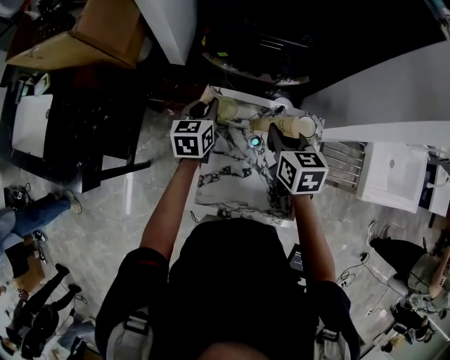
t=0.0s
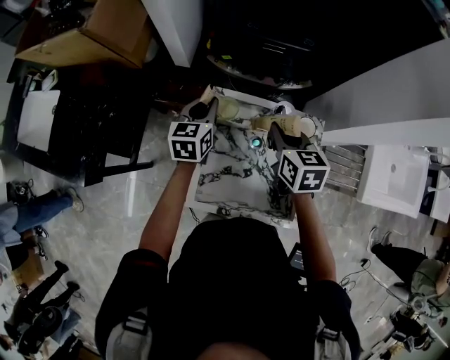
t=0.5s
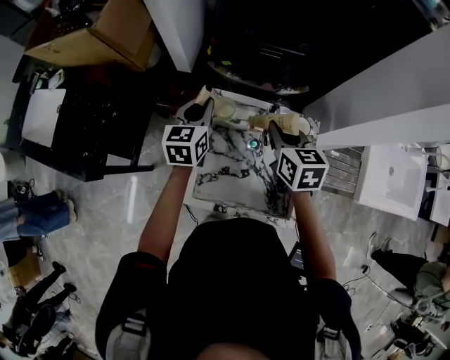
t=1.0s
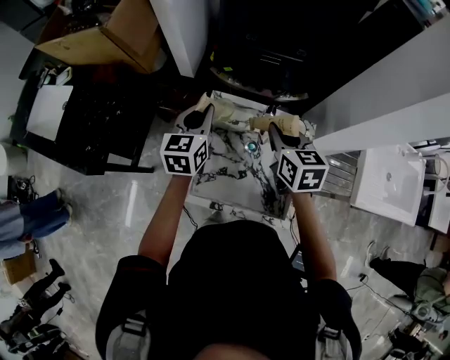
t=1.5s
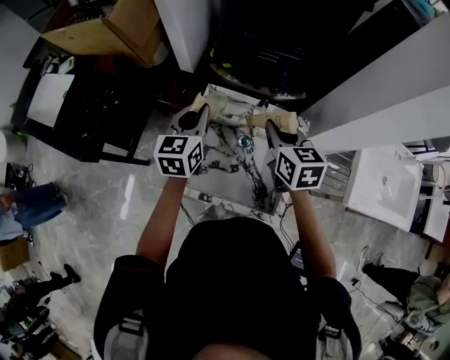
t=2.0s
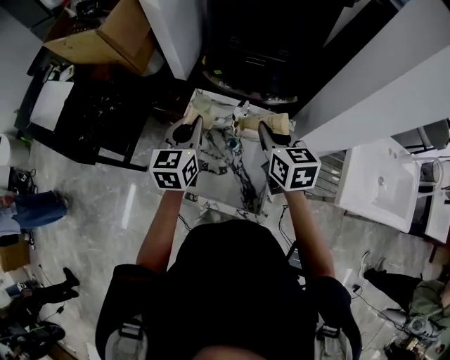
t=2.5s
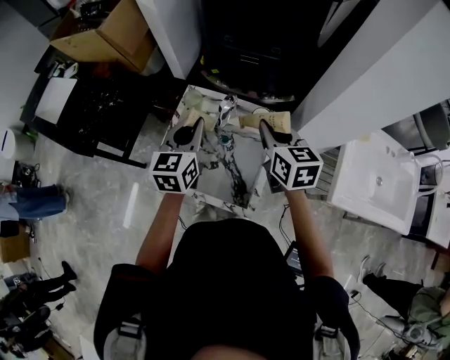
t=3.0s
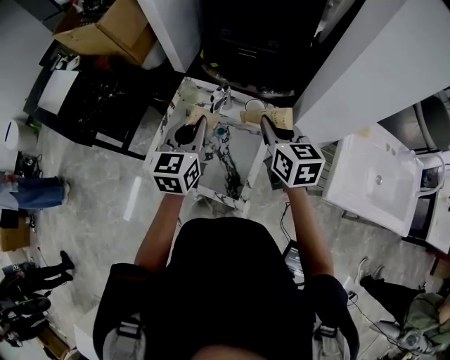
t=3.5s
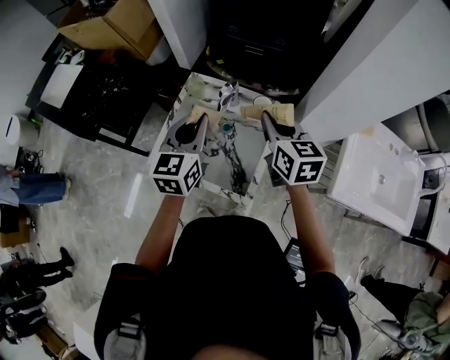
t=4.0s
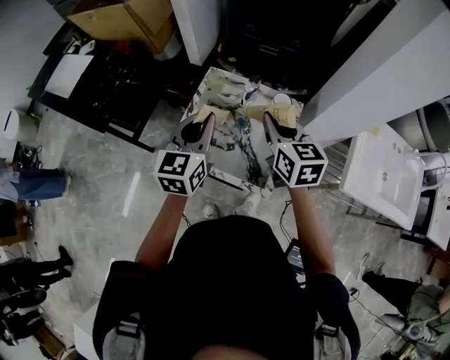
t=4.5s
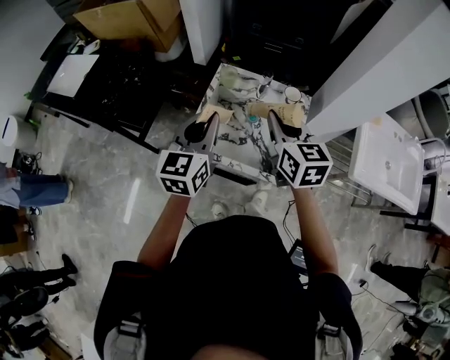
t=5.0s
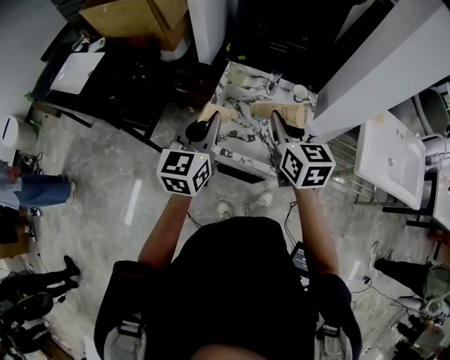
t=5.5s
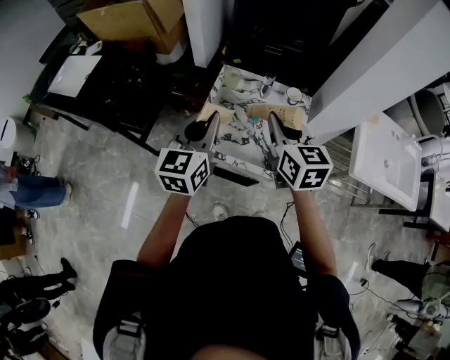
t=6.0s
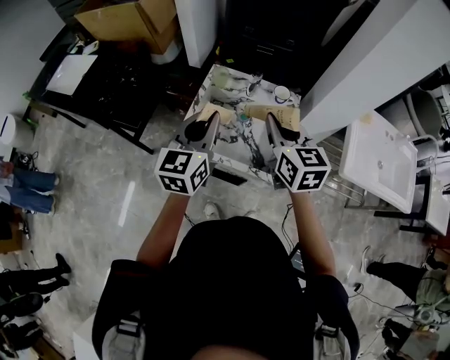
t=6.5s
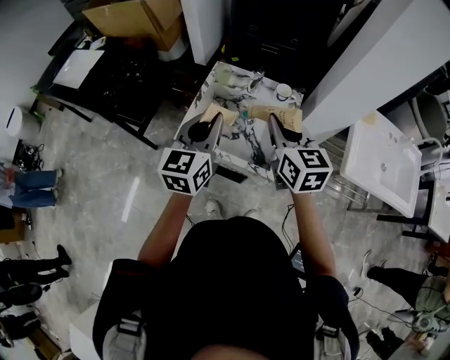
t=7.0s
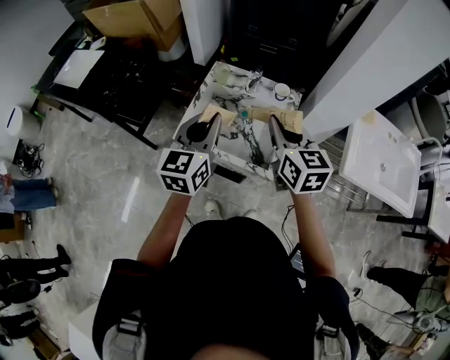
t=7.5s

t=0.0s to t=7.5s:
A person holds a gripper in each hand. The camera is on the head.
t=0.0s to t=2.0s: The left gripper is displaced upward and backward by roughly 15 cm. Meanwhile the right gripper goes roughly 5 cm upward.
t=2.0s to t=4.0s: The left gripper is displaced backward and to the right by some 20 cm; the right gripper shifts approximately 15 cm to the right and backward.
t=4.0s to t=5.5s: Both grippers travel together to the left and backward, about 20 cm.
t=5.5s to t=7.5s: The two grippers go approximately 10 cm to the right.

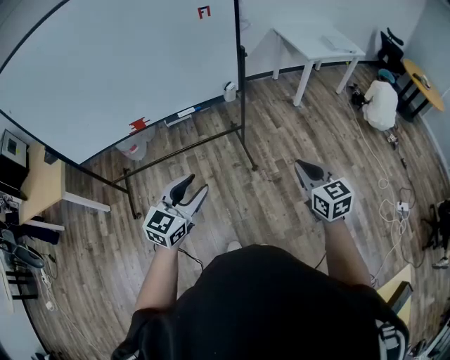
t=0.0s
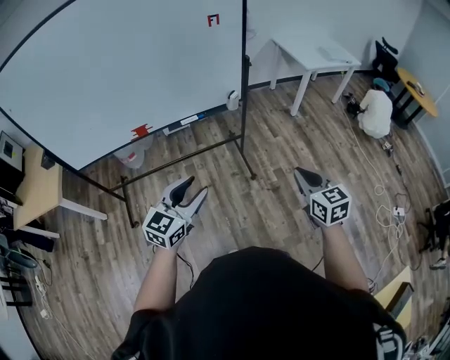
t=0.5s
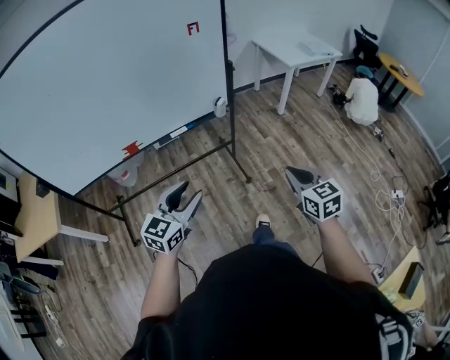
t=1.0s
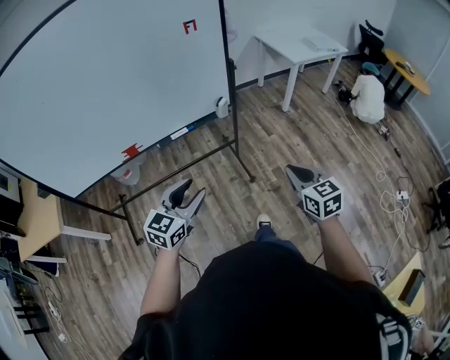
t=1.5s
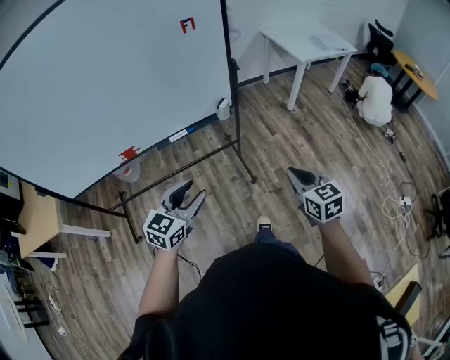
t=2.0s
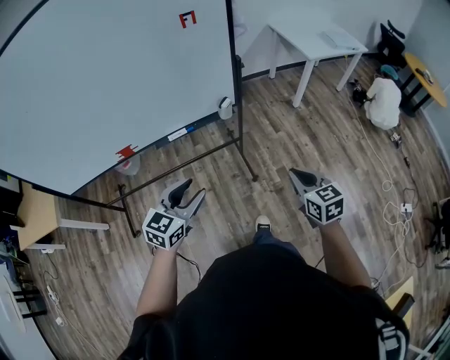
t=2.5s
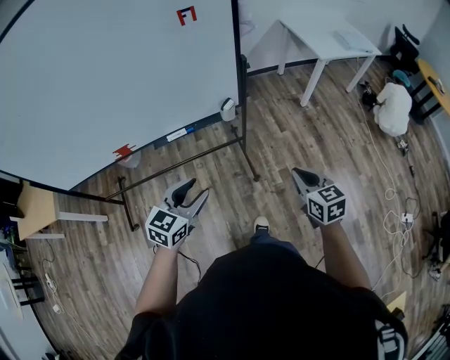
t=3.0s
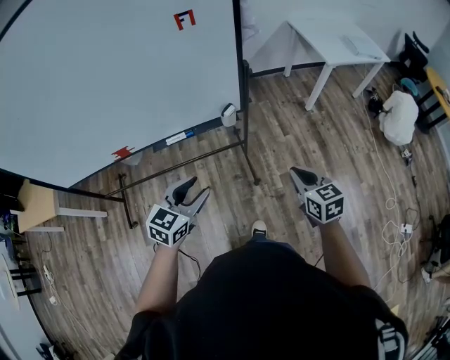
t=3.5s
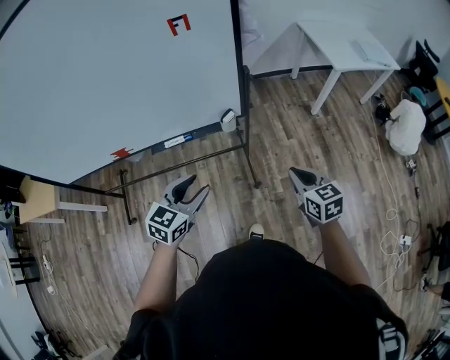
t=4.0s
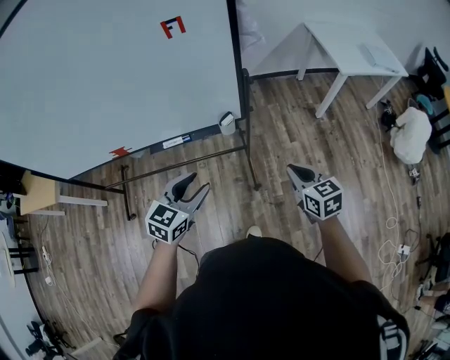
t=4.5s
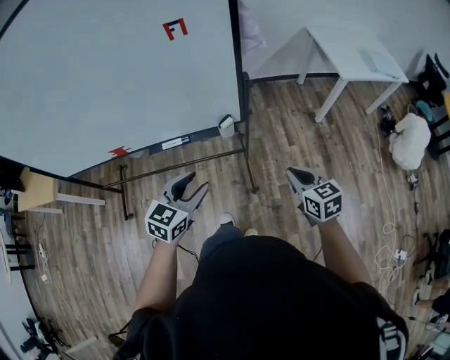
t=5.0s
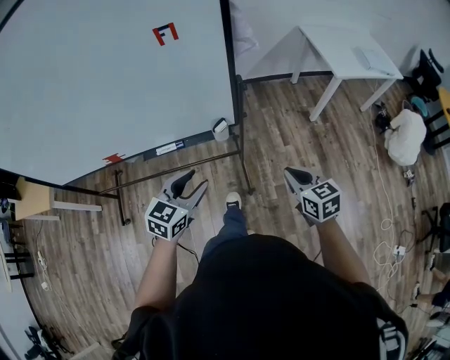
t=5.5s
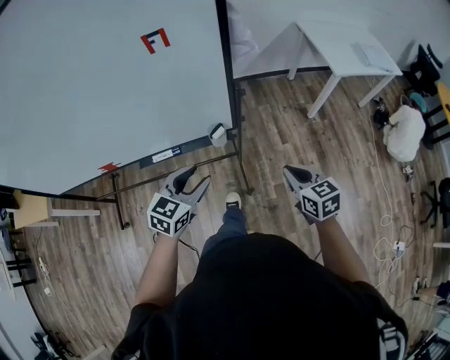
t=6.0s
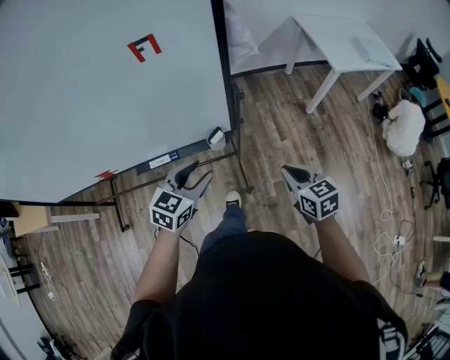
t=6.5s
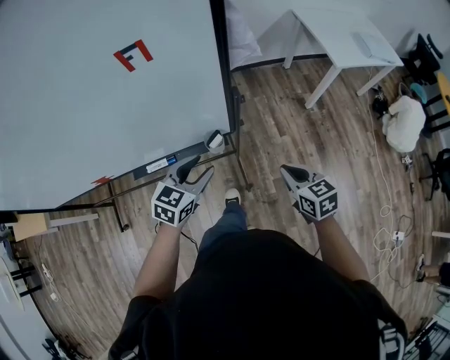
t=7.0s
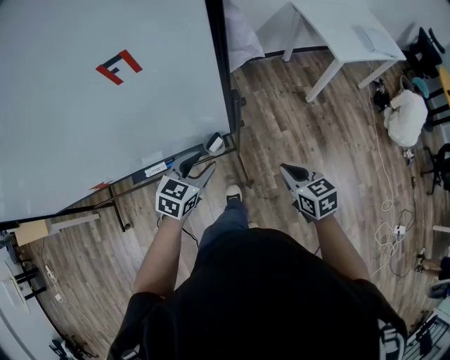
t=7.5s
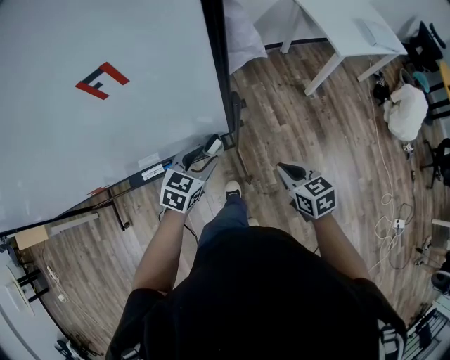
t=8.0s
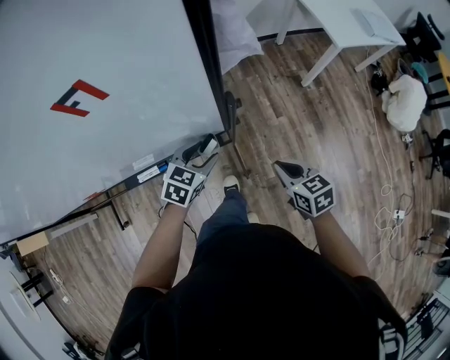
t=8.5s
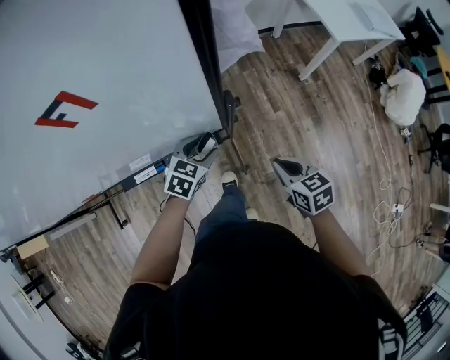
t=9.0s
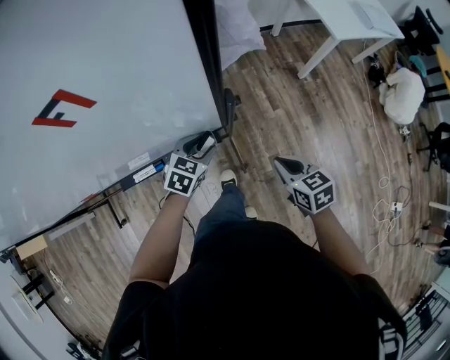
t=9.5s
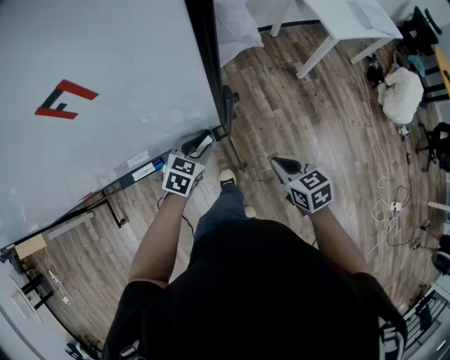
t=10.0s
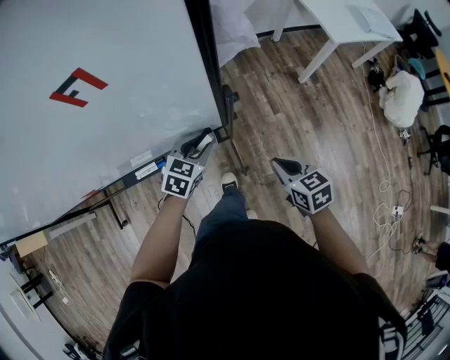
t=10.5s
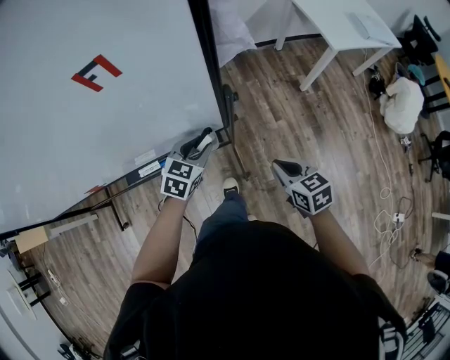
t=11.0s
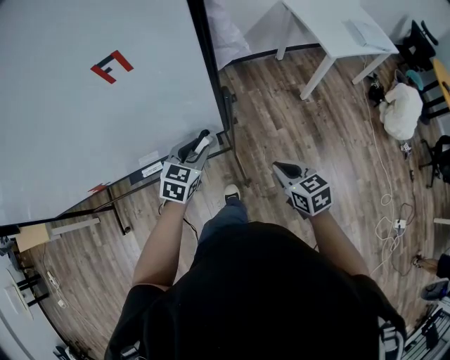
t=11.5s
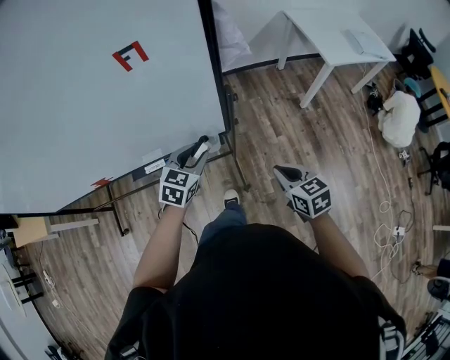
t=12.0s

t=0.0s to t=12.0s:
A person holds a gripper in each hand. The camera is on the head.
t=0.0s to t=2.0s: The grippers both shift forward by roughly 10 cm.
t=2.0s to t=4.0s: The two grippers go approximately 20 cm forward.
t=4.0s to t=6.0s: The grippers both shift forward by approximately 10 cm.
t=6.0s to t=8.0s: The left gripper travels forward and downward by about 20 cm, while the right gripper is displaced forward and downward by about 10 cm.
t=8.0s to t=10.0s: The left gripper shifts roughly 5 cm downward.
t=10.0s to t=12.0s: The grippers both shift upward and backward by some 10 cm.

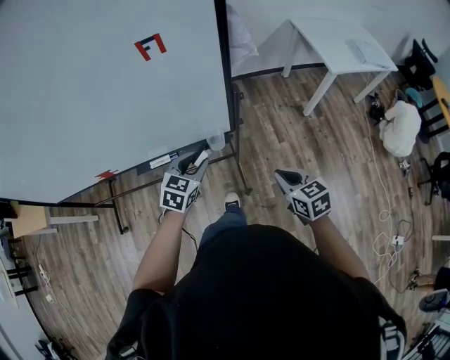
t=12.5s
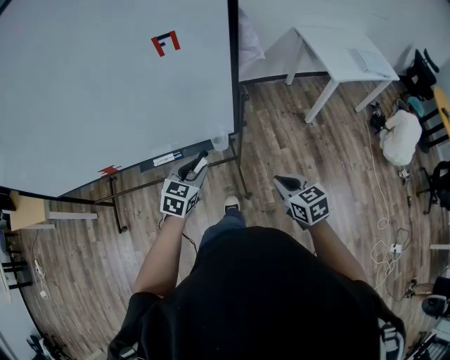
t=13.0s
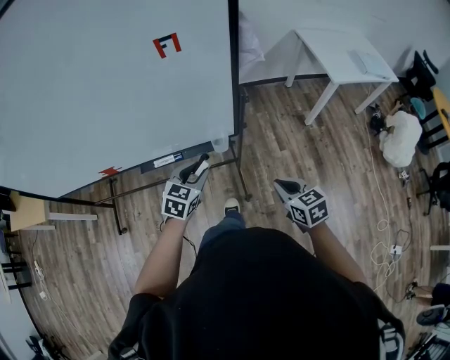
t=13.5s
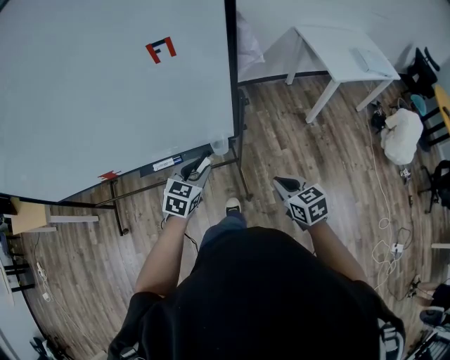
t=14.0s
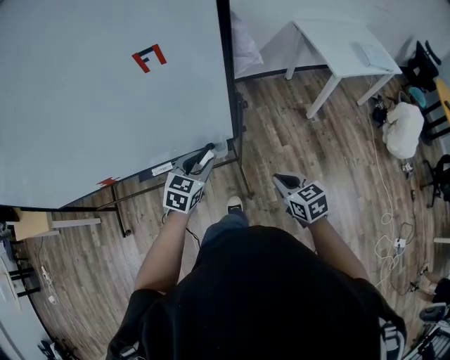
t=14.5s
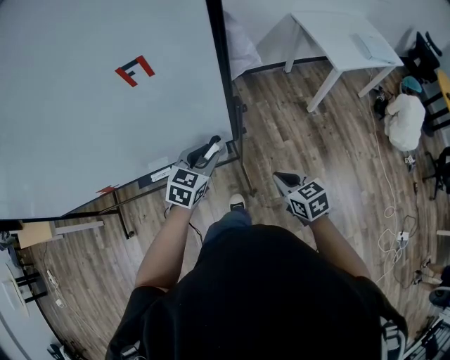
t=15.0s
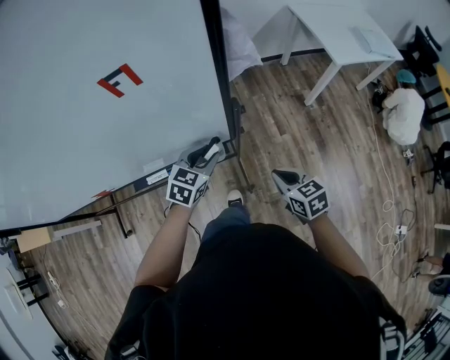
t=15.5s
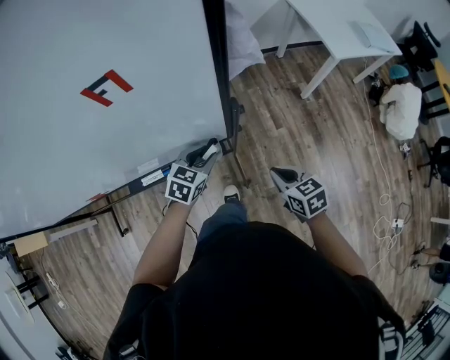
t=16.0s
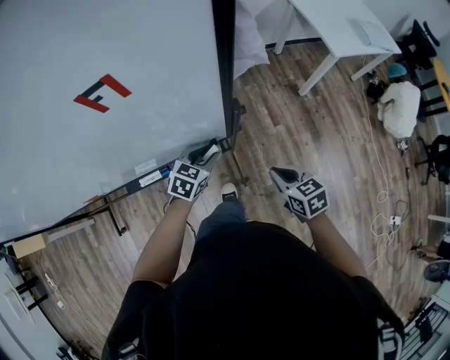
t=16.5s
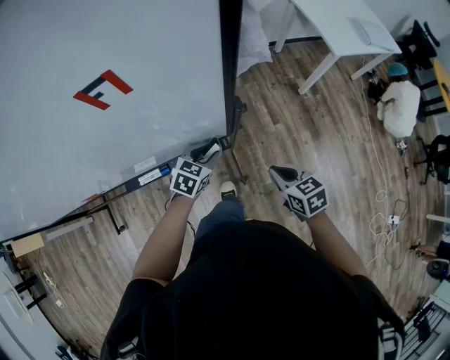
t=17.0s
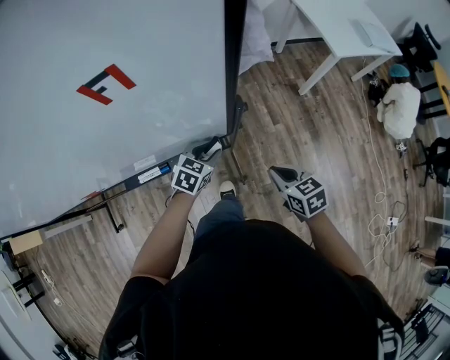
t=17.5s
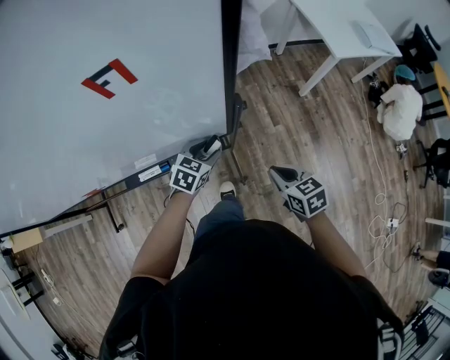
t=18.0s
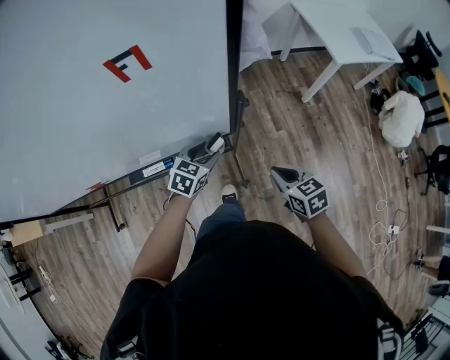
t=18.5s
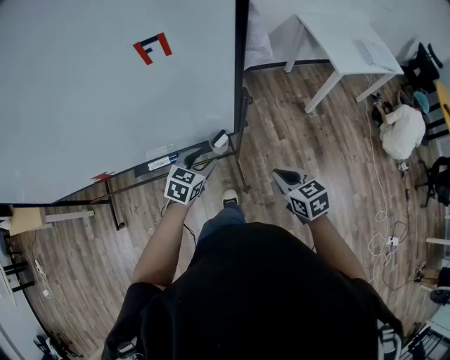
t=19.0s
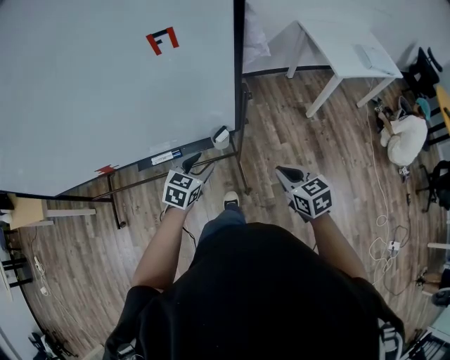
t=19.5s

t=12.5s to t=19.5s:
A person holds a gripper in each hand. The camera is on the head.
t=12.5s to t=14.5s: There are only small adjustments of the grippers.
t=14.5s to t=16.0s: The left gripper moves downward and forward, about 10 cm, while the right gripper heads forward, covering approximately 5 cm.
t=16.0s to t=17.5s: The grippers move only a little.
t=17.5s to t=19.5s: The left gripper goes some 15 cm backward, upward and to the left; the right gripper travels upward and backward by some 10 cm.
